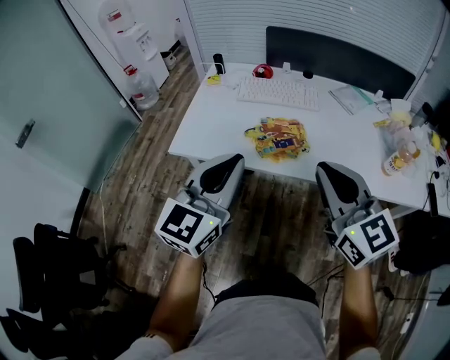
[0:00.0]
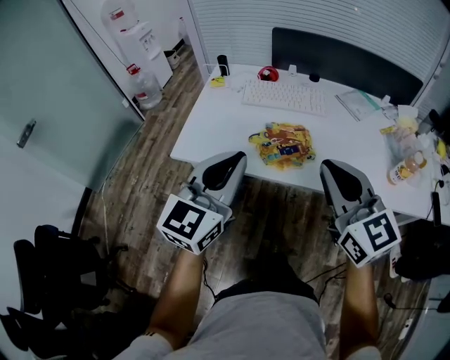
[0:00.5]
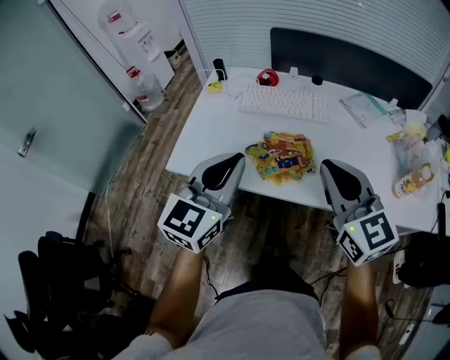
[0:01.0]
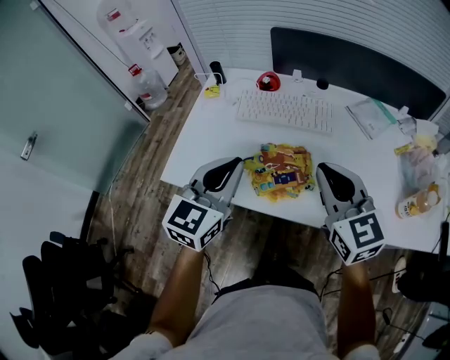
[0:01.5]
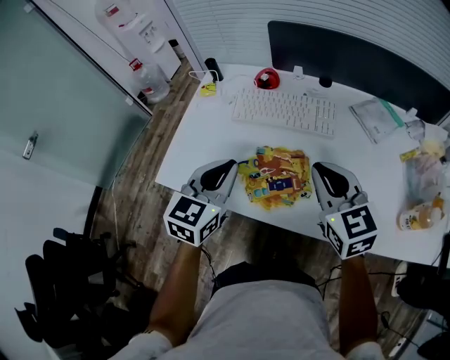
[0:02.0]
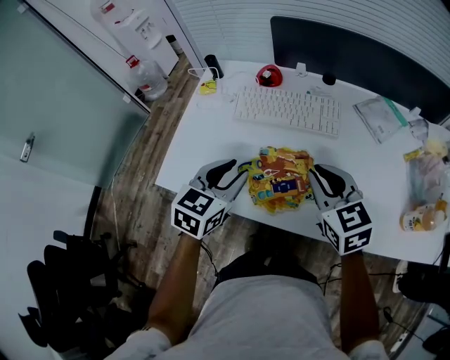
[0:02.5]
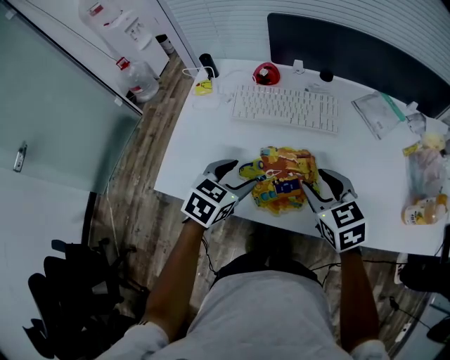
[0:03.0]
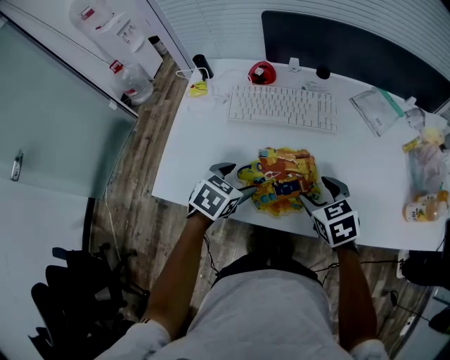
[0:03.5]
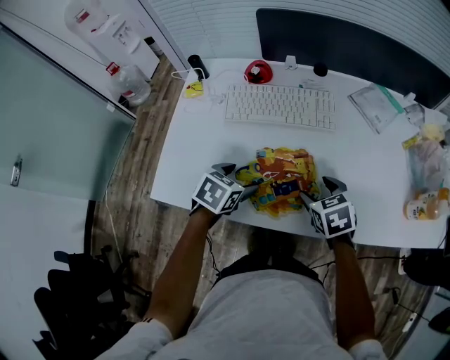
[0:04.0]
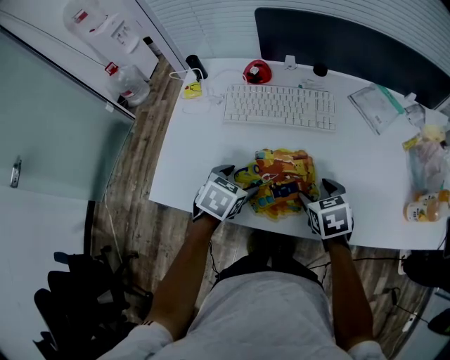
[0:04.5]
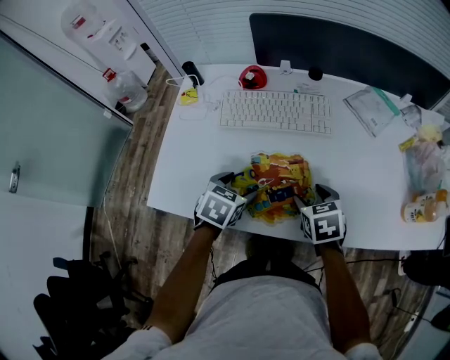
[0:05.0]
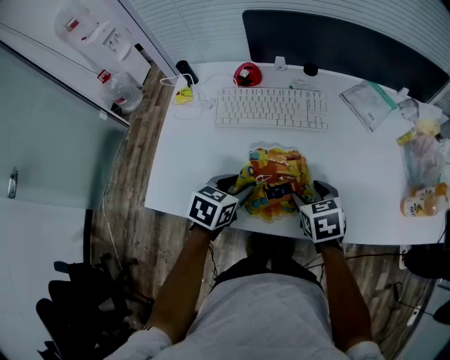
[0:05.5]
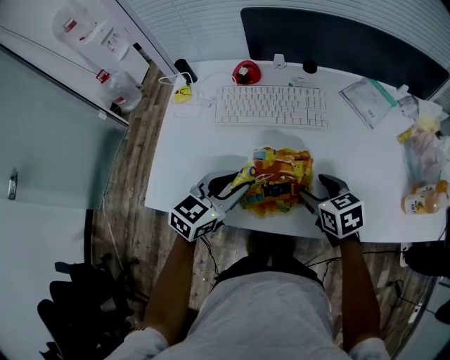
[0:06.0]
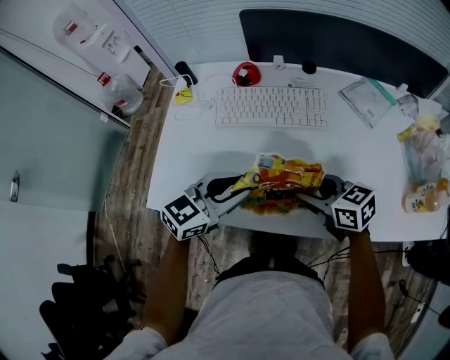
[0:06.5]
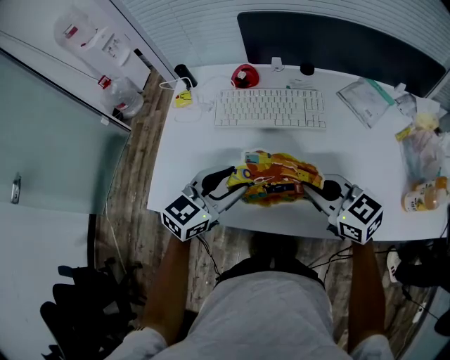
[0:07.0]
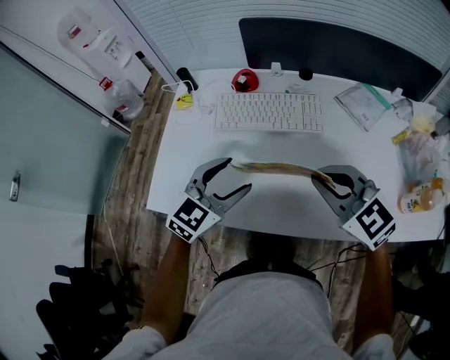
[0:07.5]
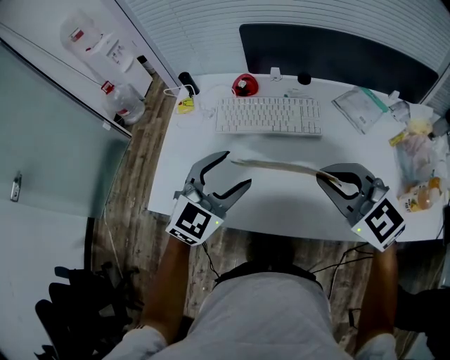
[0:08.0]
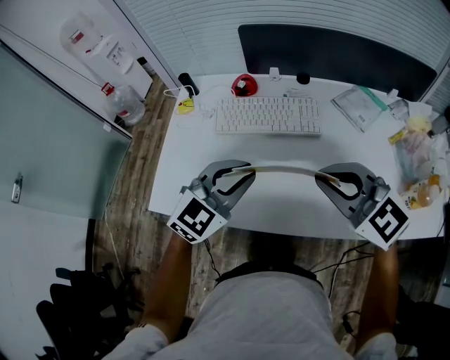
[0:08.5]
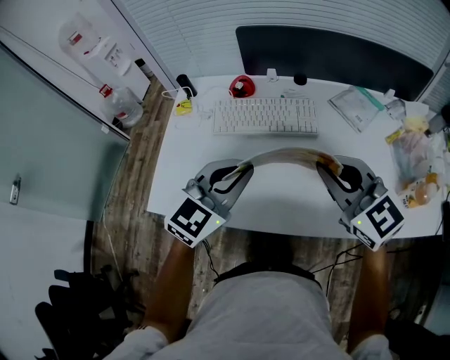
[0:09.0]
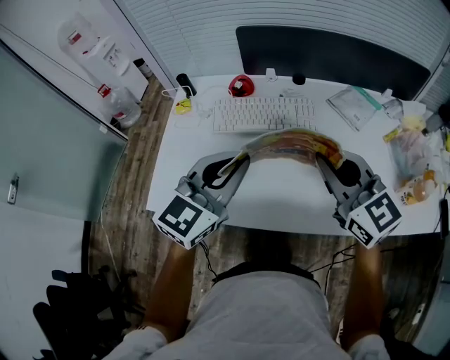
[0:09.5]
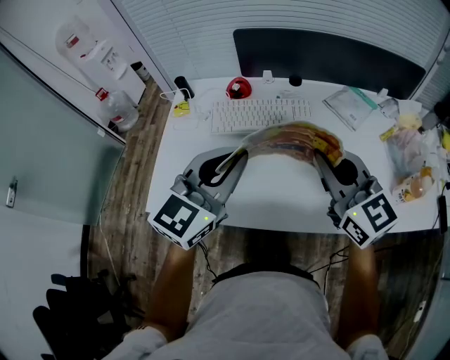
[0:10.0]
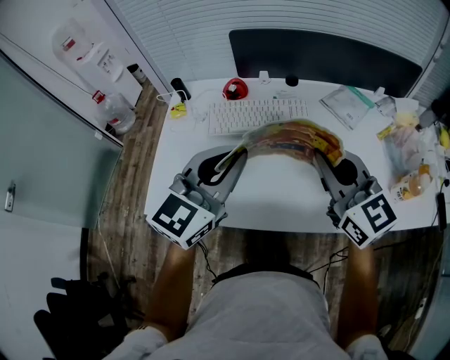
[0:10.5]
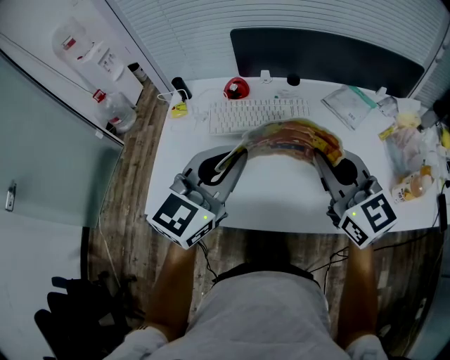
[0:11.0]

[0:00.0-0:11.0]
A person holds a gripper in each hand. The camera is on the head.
0.0 to 2.0 s: Both grippers move forward and downward, approximately 25 cm. The left gripper changes its angle by about 20 degrees.
2.0 to 3.5 s: The grippers both shift downward by approximately 15 cm. The left gripper tips its fingers downward by some 30 degrees, and opens its fingers, while the right gripper changes its angle by approximately 30 degrees, and opens.
3.5 to 5.5 s: The left gripper closes.
5.5 to 7.5 s: Both grippers move upward, about 15 cm. The left gripper swivels roughly 40 degrees. Meanwhile the right gripper swivels roughly 50 degrees, and closes up.
7.5 to 9.0 s: The grippers both shift upward by some 5 cm. The left gripper closes its fingers.
9.0 to 11.0 s: The left gripper heads upward, covering about 5 cm.

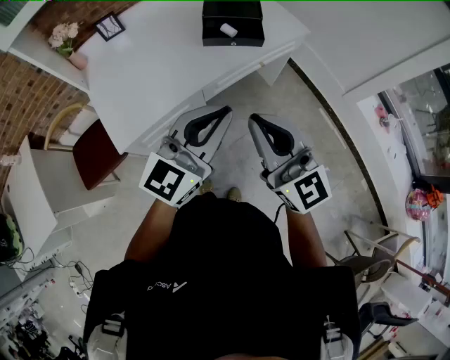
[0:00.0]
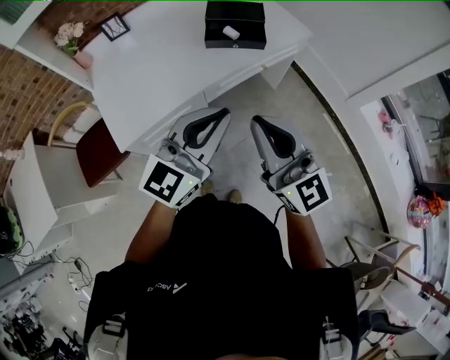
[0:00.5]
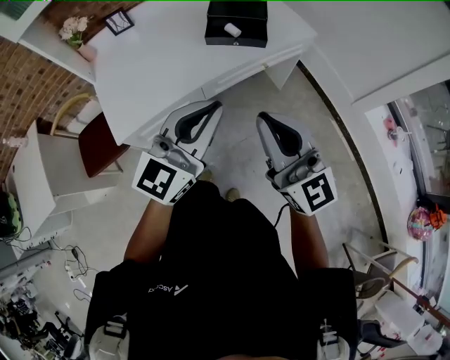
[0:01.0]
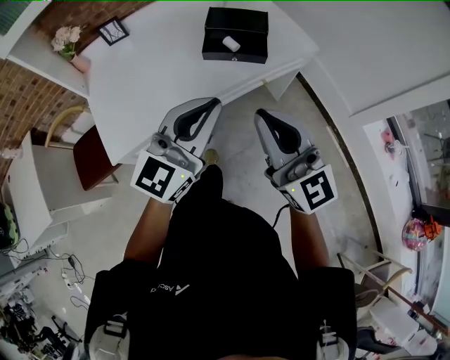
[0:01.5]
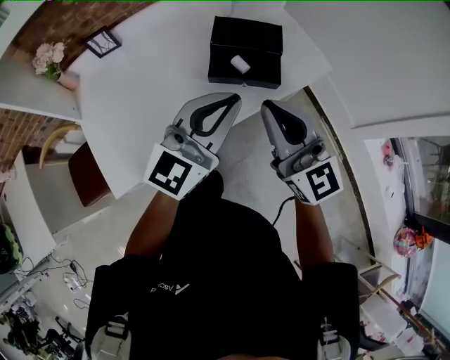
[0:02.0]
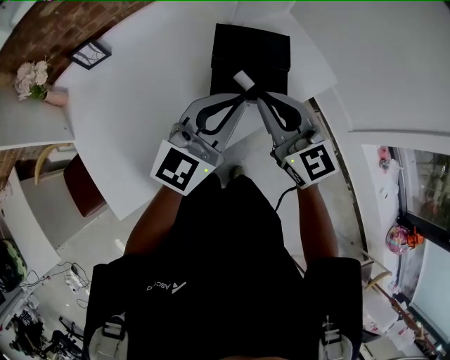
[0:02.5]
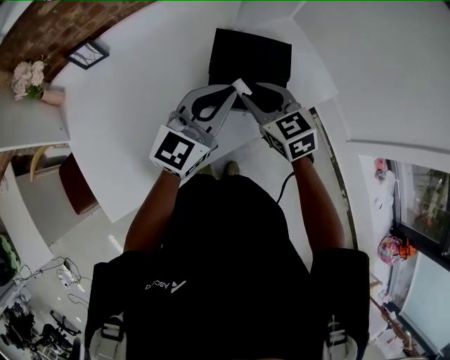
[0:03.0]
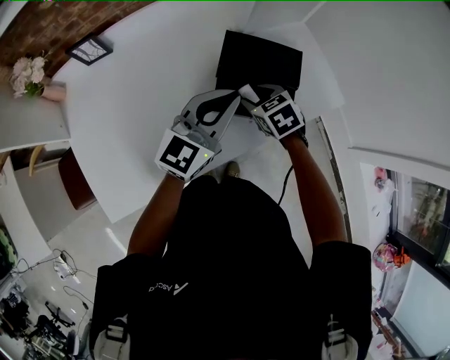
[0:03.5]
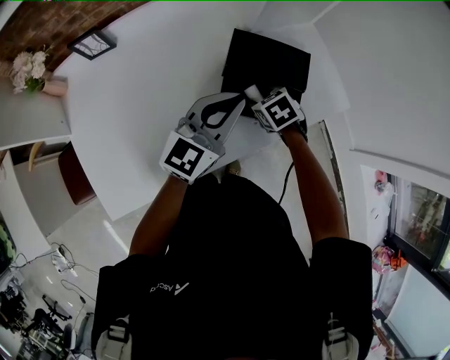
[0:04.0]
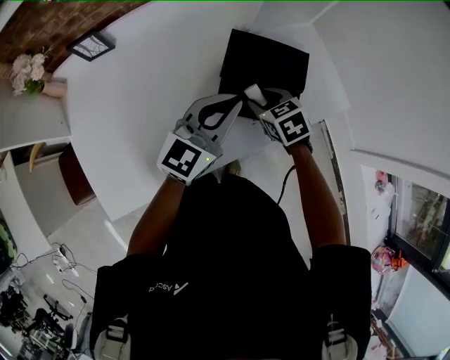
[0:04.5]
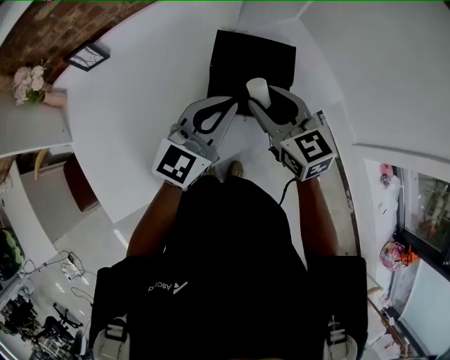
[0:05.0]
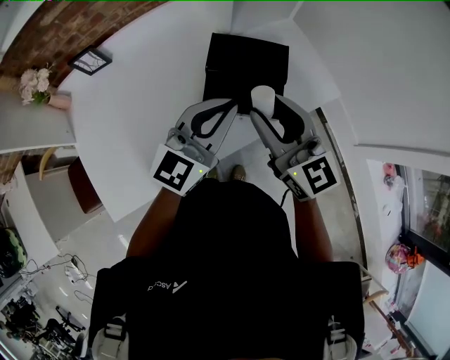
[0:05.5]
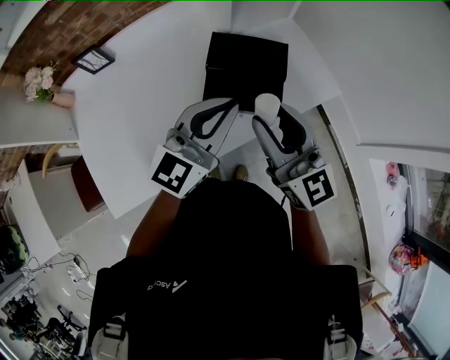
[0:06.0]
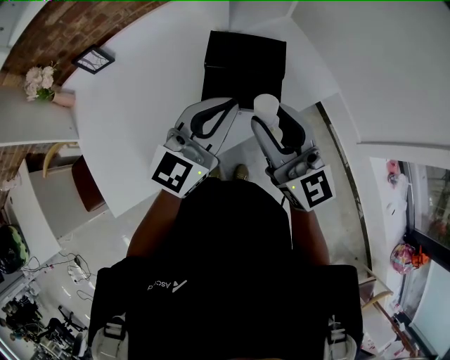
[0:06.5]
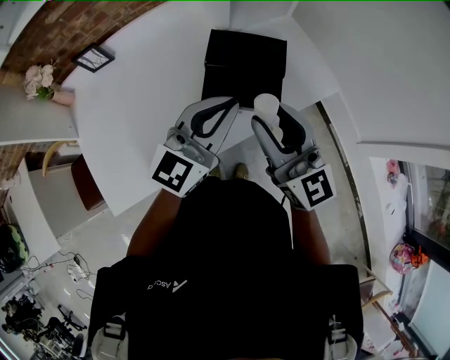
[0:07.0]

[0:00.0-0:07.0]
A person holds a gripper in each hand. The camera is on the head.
0.0 to 2.0 s: The grippers both shift forward by some 25 cm.
2.0 to 3.5 s: The left gripper moves forward and downward, about 20 cm, while the right gripper is displaced downward and forward by roughly 35 cm, tilts its fingers roughly 60 degrees downward, and opens.
3.5 to 5.0 s: The right gripper travels upward by some 15 cm, and tilts its fingers roughly 40 degrees upward.
5.0 to 7.0 s: The right gripper travels backward and upward by roughly 15 cm, and changes its angle by about 30 degrees; the left gripper changes place by roughly 5 cm.

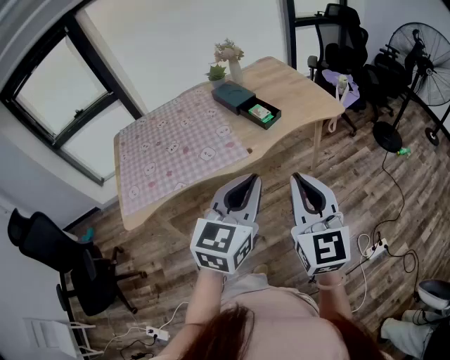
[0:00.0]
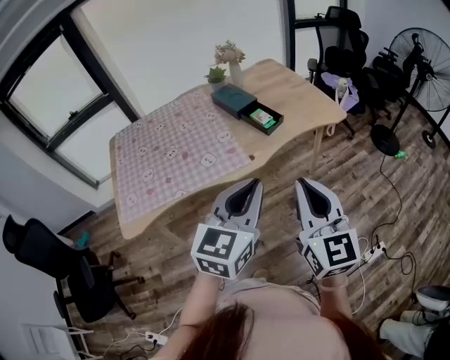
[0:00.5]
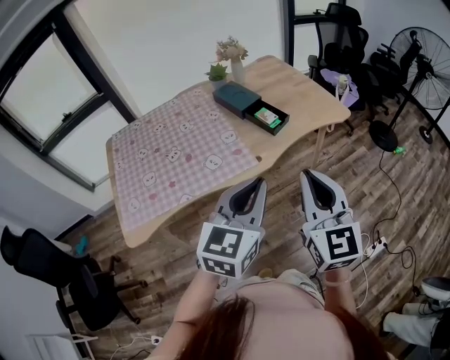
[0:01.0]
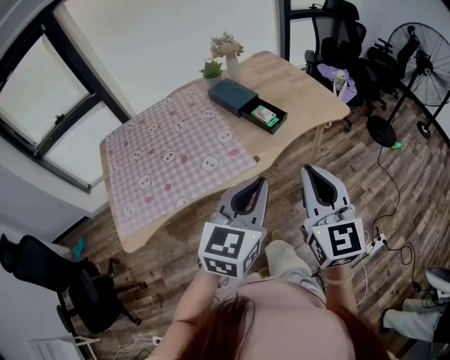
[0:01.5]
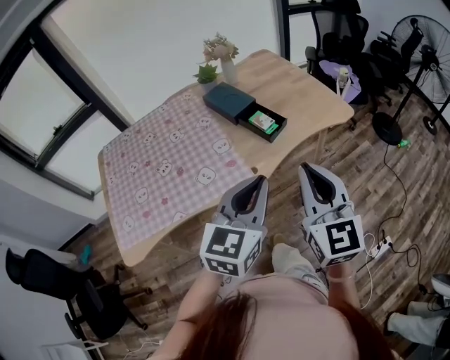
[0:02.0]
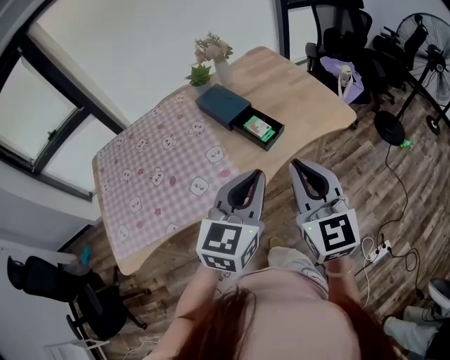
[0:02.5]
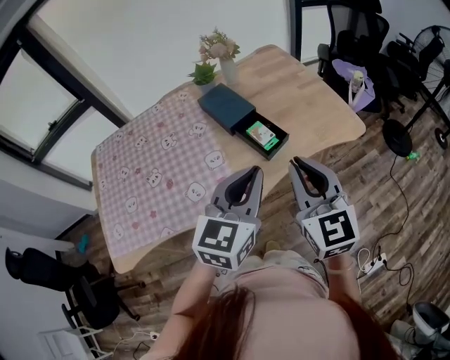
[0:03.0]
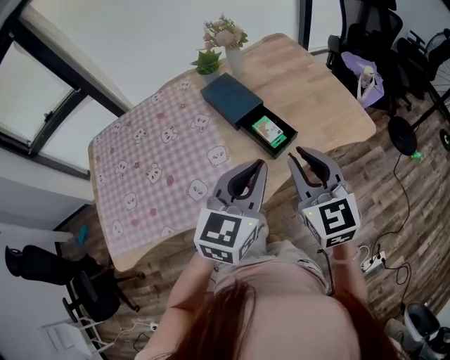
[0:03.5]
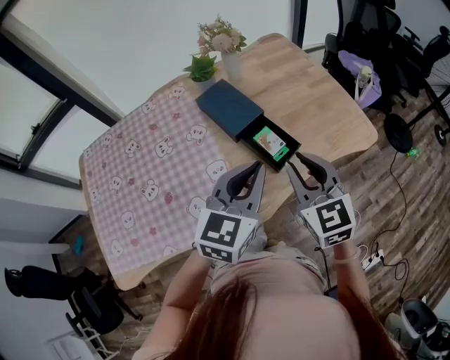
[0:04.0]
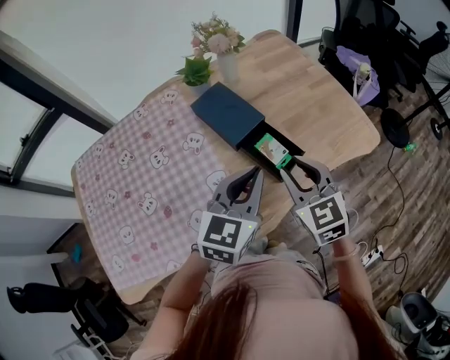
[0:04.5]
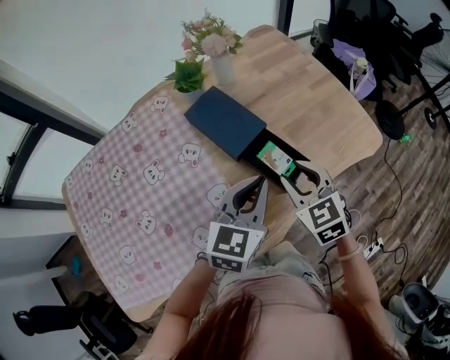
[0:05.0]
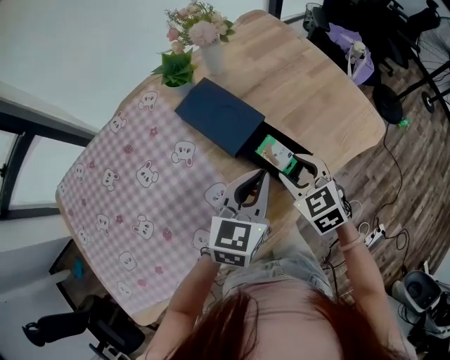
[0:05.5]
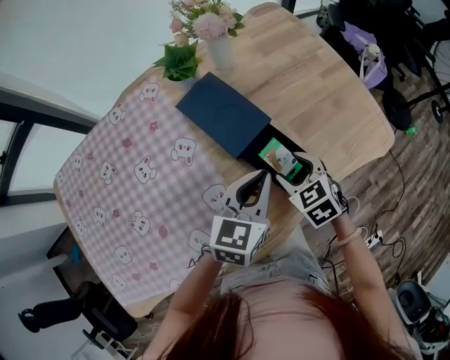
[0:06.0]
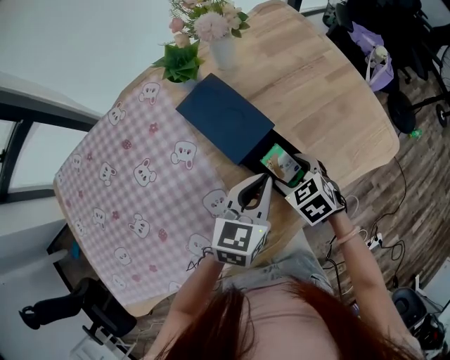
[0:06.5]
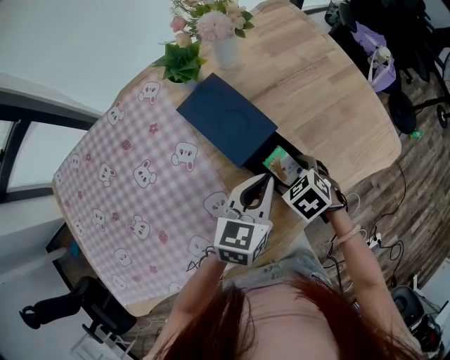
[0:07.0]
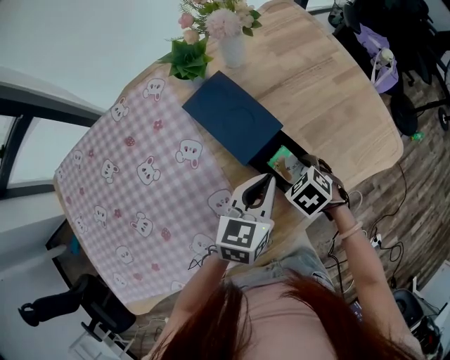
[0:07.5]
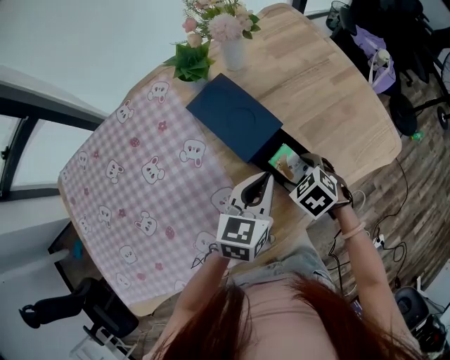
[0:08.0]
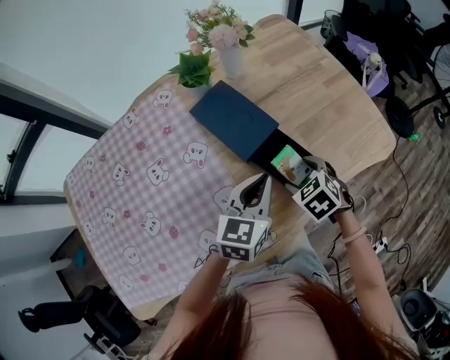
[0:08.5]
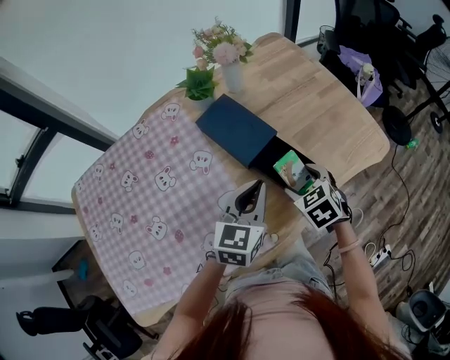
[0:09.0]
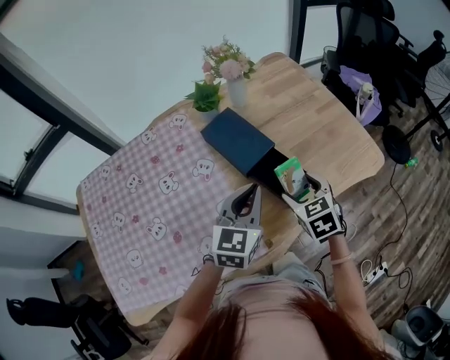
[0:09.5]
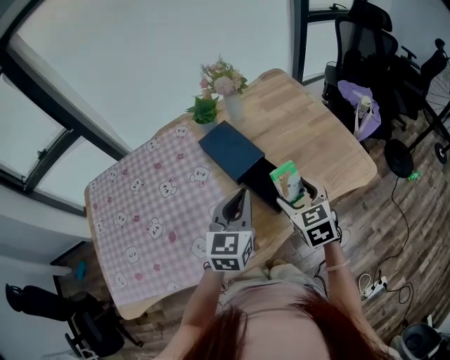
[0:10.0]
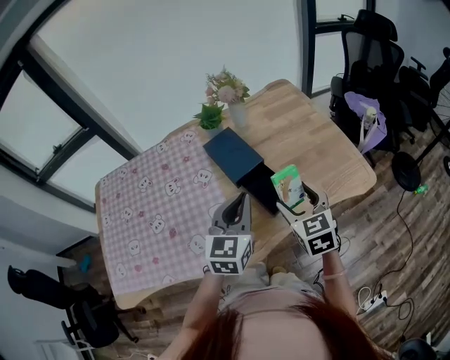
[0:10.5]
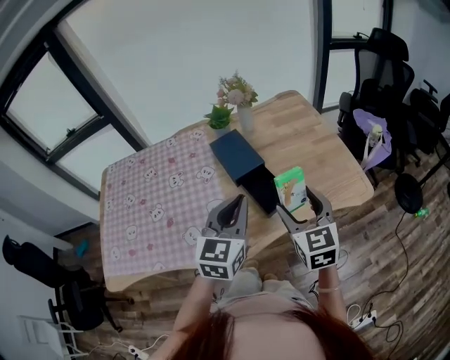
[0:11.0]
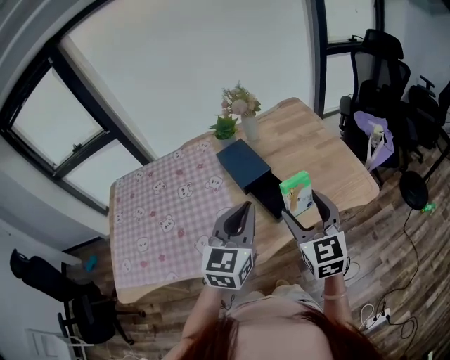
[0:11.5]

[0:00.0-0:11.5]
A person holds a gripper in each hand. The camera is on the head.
0.0 to 2.0 s: Both grippers move forward, approximately 15 cm.
2.0 to 4.0 s: The grippers both shift forward by some 25 cm. The right gripper rotates some 20 degrees.
4.0 to 6.0 s: Both grippers travel together downward and forward, approximately 25 cm. The right gripper angles its fingers downward, by roughly 30 degrees, and opens its fingers.
6.0 to 7.5 s: The right gripper shifts roughly 5 cm downward, and turns by about 30 degrees.
7.5 to 9.5 s: The two grippers go about 10 cm upward. The right gripper changes its angle by some 30 degrees.
9.5 to 11.5 s: The right gripper shifts approximately 20 cm upward and backward, and angles its fingers upward, by about 30 degrees. Meanwhile the left gripper travels upward, backward and to the right by approximately 20 cm.
